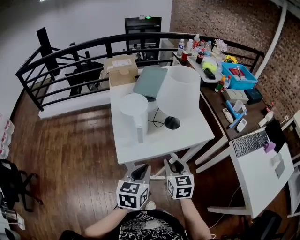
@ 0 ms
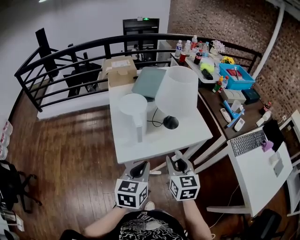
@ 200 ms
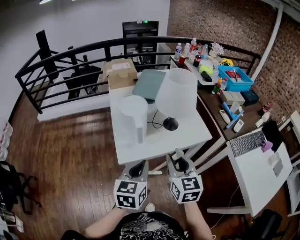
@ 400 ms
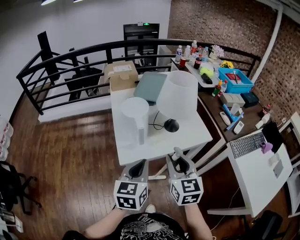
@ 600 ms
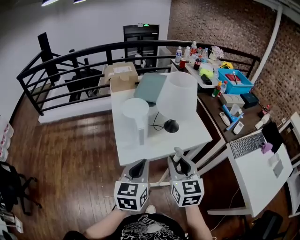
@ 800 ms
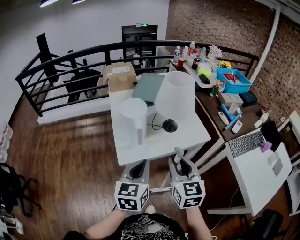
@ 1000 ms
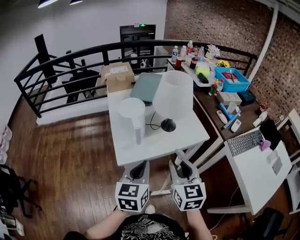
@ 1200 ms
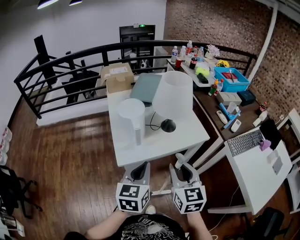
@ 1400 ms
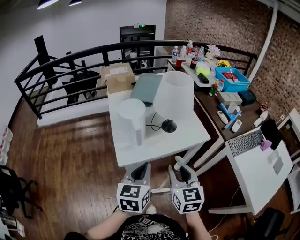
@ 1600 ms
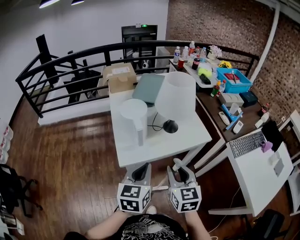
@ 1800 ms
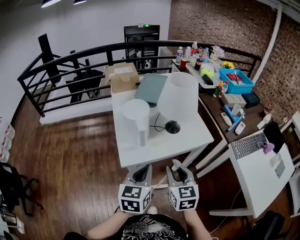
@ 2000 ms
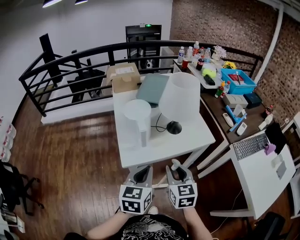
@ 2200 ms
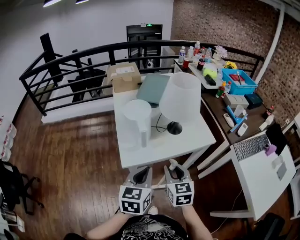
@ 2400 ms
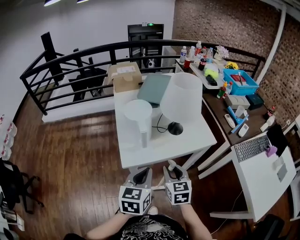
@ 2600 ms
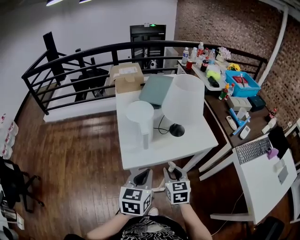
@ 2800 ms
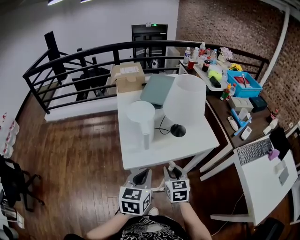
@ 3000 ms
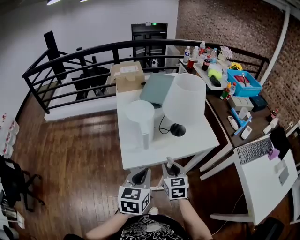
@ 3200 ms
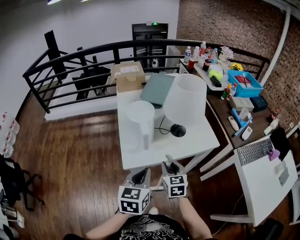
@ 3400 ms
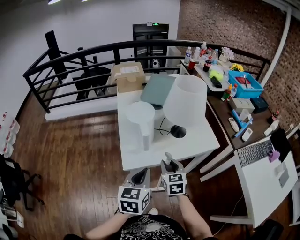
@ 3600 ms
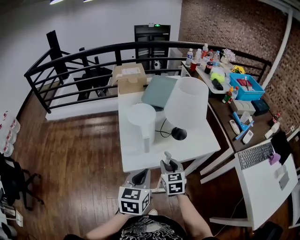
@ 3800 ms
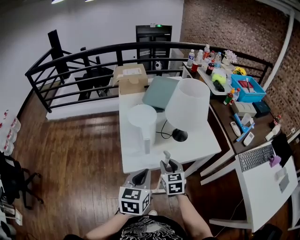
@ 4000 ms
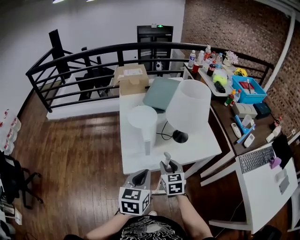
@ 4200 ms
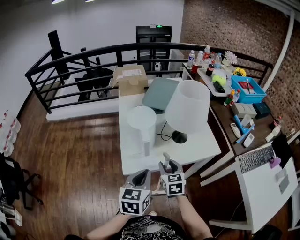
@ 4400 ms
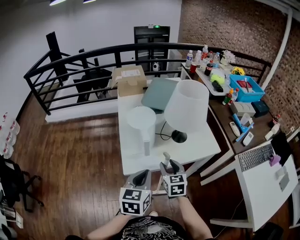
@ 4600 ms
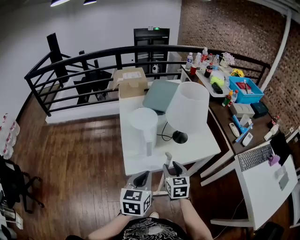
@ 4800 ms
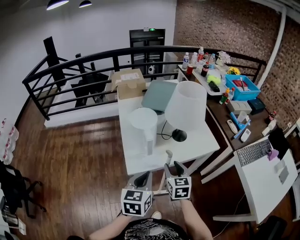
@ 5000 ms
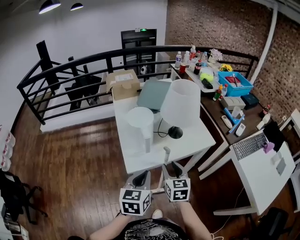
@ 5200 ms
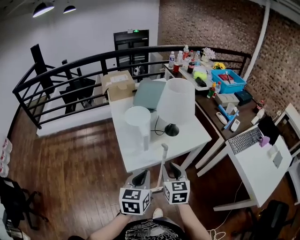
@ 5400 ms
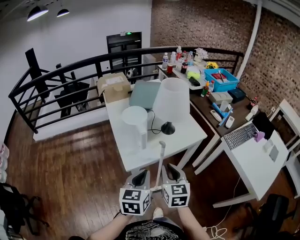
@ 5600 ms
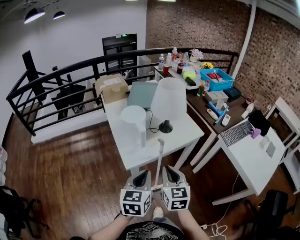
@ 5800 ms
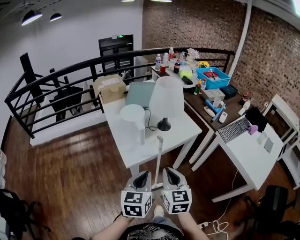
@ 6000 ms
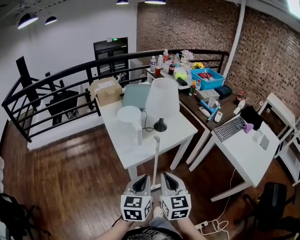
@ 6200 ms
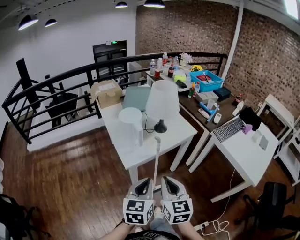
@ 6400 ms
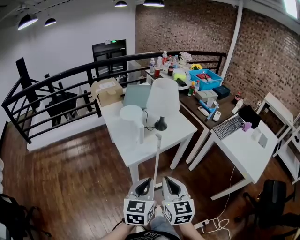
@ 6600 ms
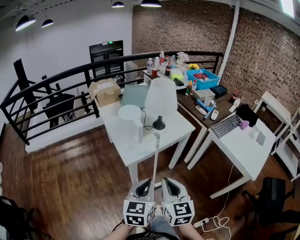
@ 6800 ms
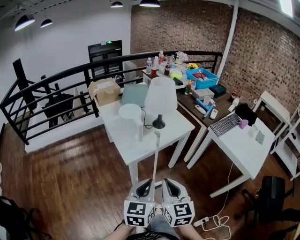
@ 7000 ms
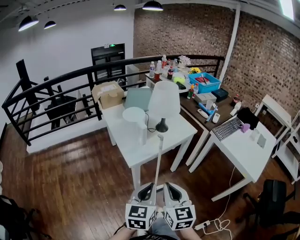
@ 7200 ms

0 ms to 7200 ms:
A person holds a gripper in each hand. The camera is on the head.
0 ms to 1400 ms: The right gripper moves upward and backward, some 10 cm; the left gripper goes about 5 cm upward.
1400 ms to 2800 ms: The right gripper heads downward, covering some 15 cm.
2800 ms to 4400 ms: The right gripper heads forward, covering about 10 cm.
4400 ms to 5800 ms: The left gripper travels backward and upward by roughly 10 cm; the right gripper goes about 20 cm backward and upward, turns by about 20 degrees, and closes up.
5800 ms to 7200 ms: The two grippers go some 15 cm backward.

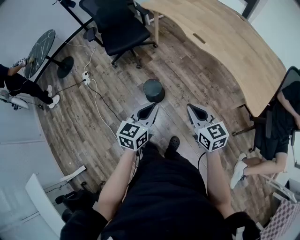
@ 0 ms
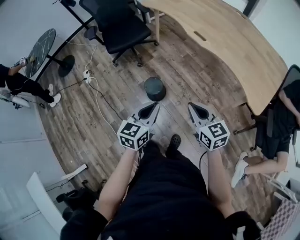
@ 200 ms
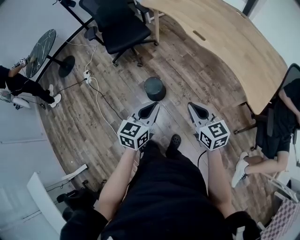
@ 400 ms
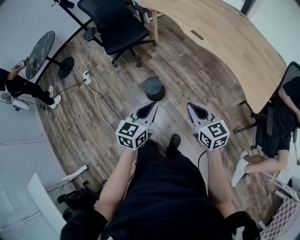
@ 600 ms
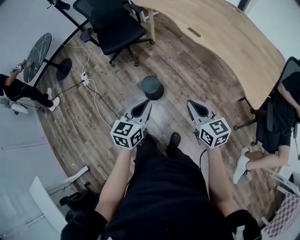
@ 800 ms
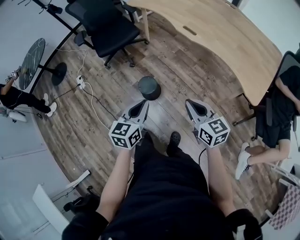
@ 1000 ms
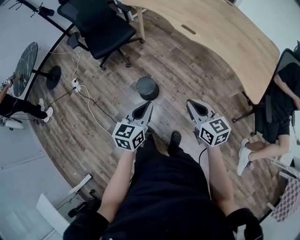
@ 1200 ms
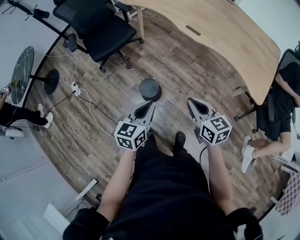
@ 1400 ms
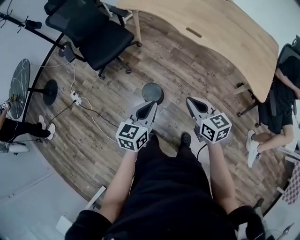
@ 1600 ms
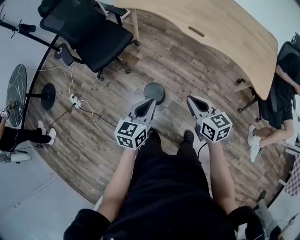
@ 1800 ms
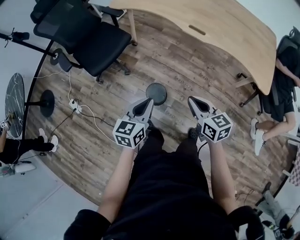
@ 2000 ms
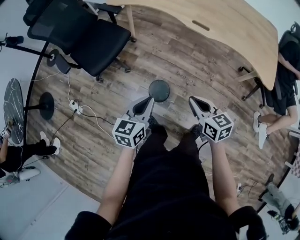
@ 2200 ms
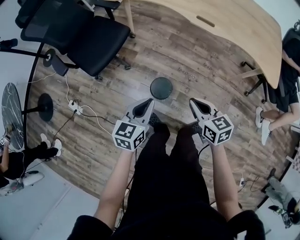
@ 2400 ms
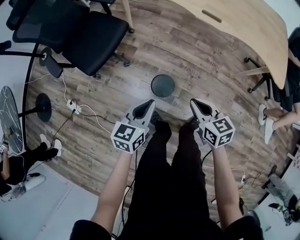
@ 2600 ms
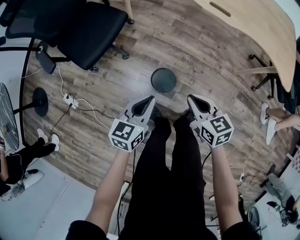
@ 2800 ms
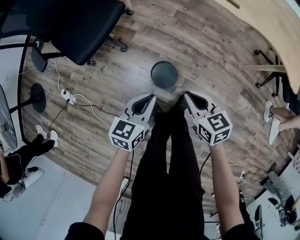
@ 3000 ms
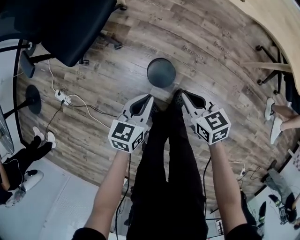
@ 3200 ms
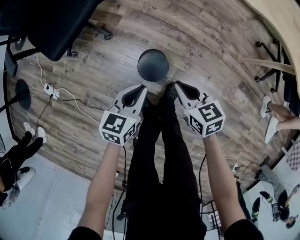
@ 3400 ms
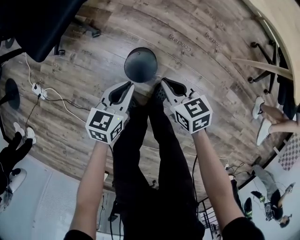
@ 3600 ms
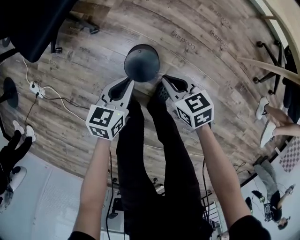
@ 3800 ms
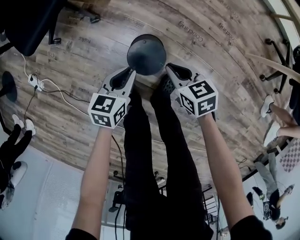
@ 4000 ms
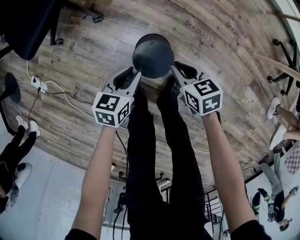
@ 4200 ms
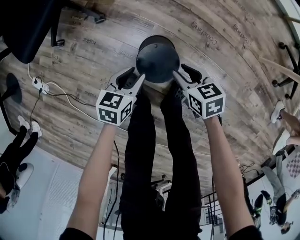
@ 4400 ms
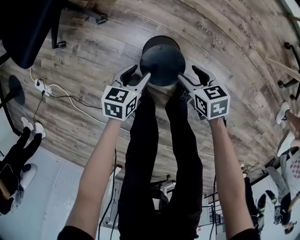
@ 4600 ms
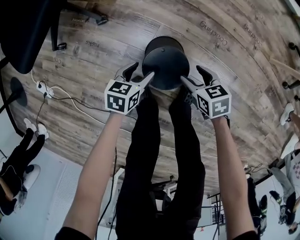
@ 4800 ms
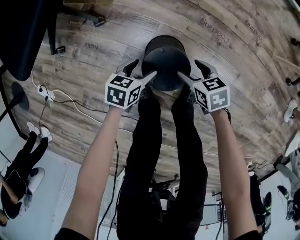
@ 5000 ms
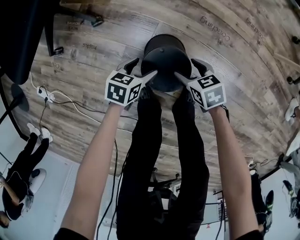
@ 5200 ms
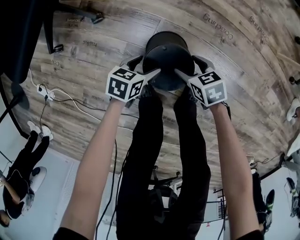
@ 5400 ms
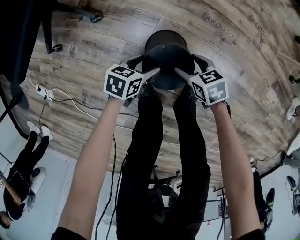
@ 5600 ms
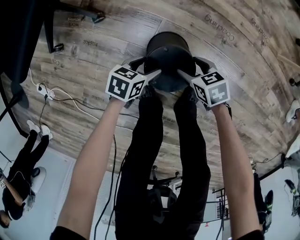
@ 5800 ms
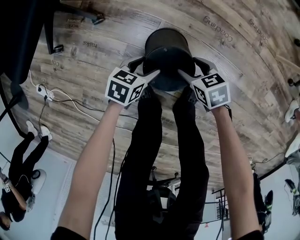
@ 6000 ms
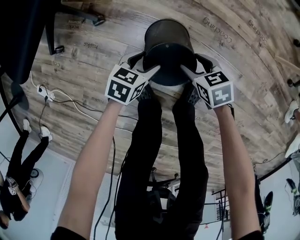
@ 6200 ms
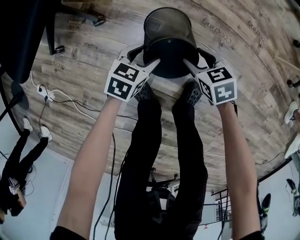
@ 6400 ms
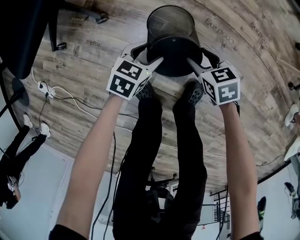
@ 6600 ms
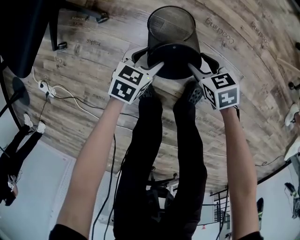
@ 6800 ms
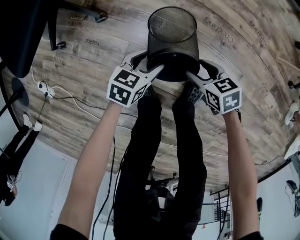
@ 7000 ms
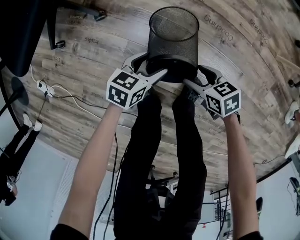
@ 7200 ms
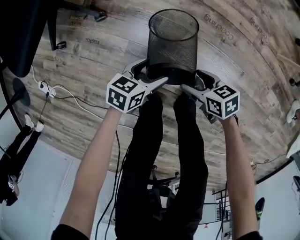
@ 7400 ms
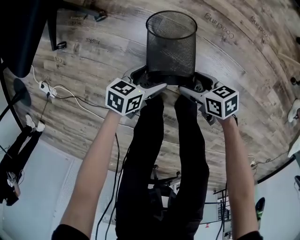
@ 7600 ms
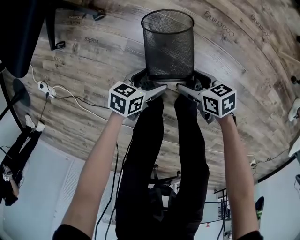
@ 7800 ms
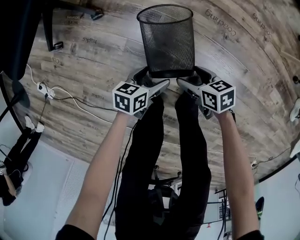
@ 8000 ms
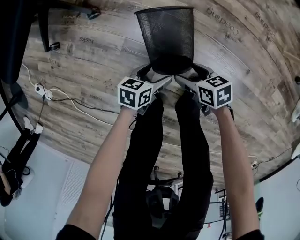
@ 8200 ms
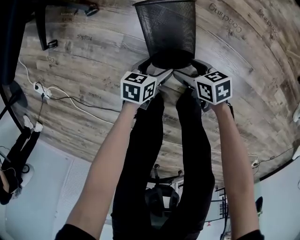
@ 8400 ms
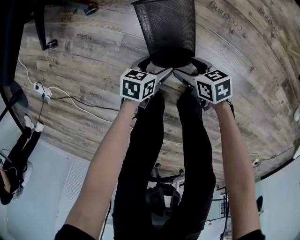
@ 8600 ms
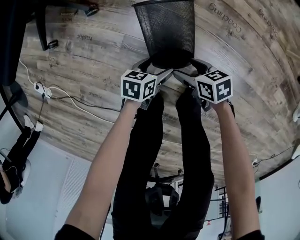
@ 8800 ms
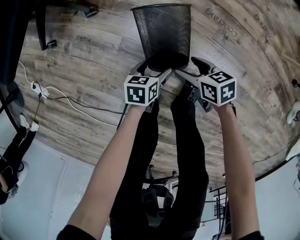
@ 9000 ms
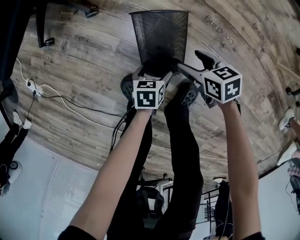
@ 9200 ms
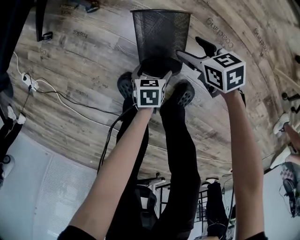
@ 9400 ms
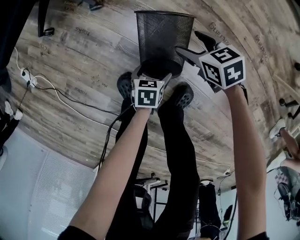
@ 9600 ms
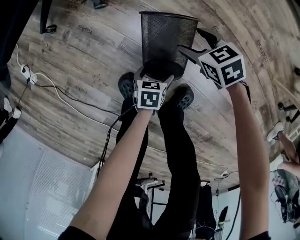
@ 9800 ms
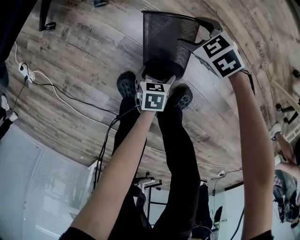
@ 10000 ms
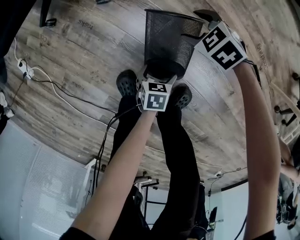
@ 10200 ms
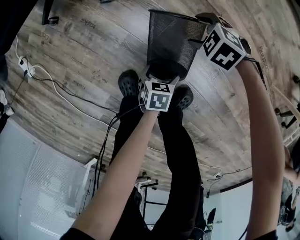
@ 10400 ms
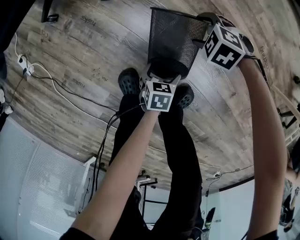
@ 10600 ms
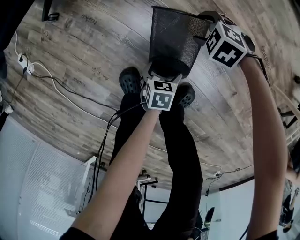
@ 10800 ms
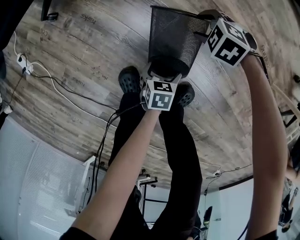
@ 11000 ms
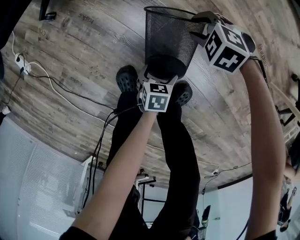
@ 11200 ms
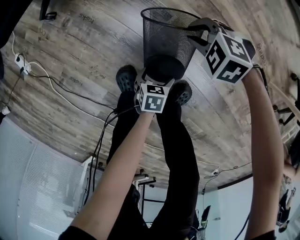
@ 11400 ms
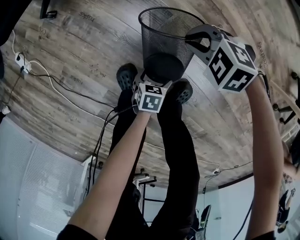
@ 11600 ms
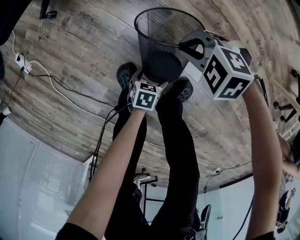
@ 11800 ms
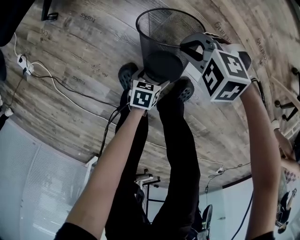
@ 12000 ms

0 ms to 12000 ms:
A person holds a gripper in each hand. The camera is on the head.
0 ms to 1600 ms: Both grippers move forward and to the left, roughly 15 cm.
1600 ms to 3000 ms: The left gripper is displaced downward, to the left and forward by approximately 25 cm. Meanwhile the right gripper goes approximately 25 cm downward and to the left.
3000 ms to 4400 ms: The two grippers go approximately 35 cm downward.
4400 ms to 6000 ms: The two grippers go about 10 cm downward. The left gripper turns by some 20 degrees, while the right gripper opens its fingers.
6000 ms to 7600 ms: The left gripper changes place by roughly 5 cm, while the right gripper shifts by some 10 cm, and swivels some 20 degrees.
7600 ms to 9000 ms: The right gripper shifts approximately 5 cm downward, while the left gripper is displaced downward by roughly 10 cm, and rotates about 20 degrees.
9000 ms to 10400 ms: The right gripper moves approximately 15 cm, and rotates around the line of its fingers by some 70 degrees, counterclockwise from behind.
10400 ms to 12000 ms: The right gripper shifts by about 15 cm, and closes up; the left gripper changes place by about 5 cm.

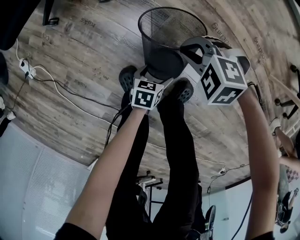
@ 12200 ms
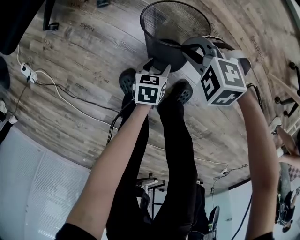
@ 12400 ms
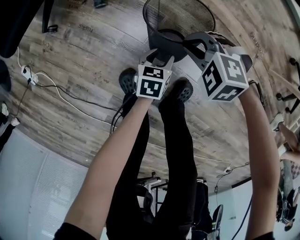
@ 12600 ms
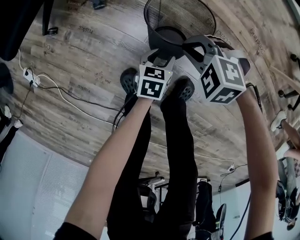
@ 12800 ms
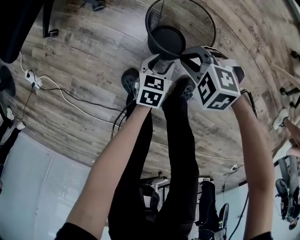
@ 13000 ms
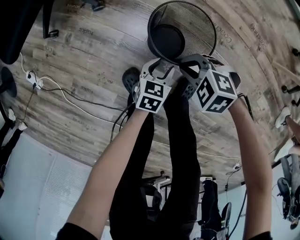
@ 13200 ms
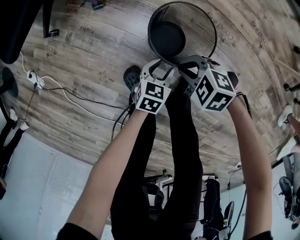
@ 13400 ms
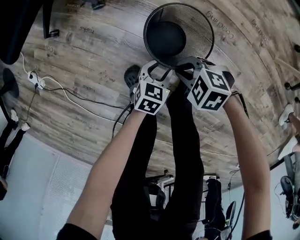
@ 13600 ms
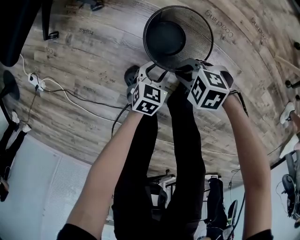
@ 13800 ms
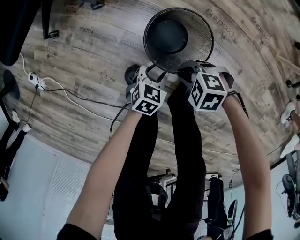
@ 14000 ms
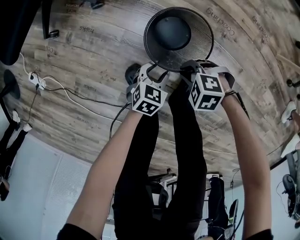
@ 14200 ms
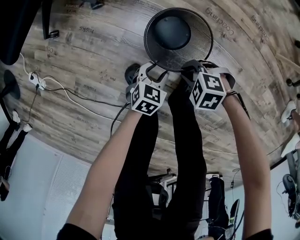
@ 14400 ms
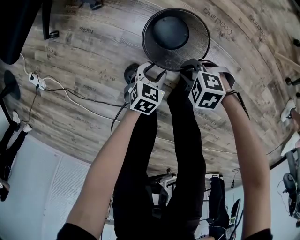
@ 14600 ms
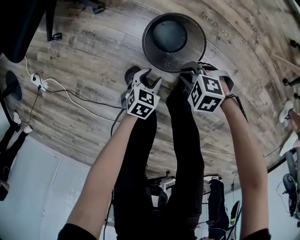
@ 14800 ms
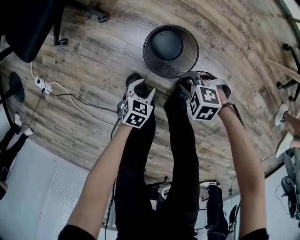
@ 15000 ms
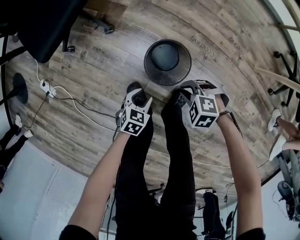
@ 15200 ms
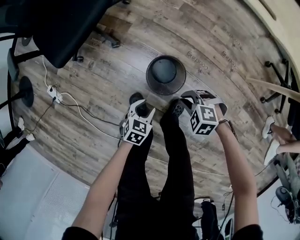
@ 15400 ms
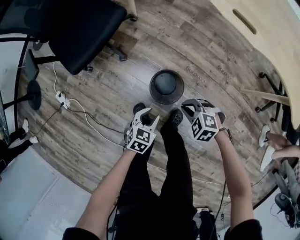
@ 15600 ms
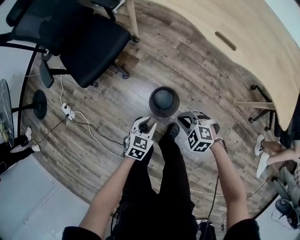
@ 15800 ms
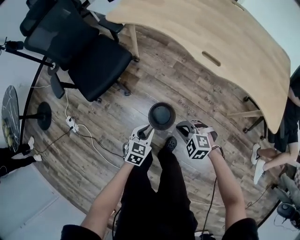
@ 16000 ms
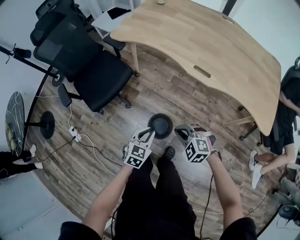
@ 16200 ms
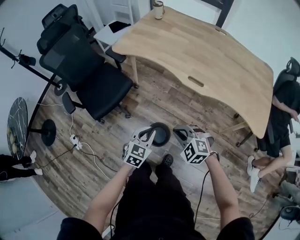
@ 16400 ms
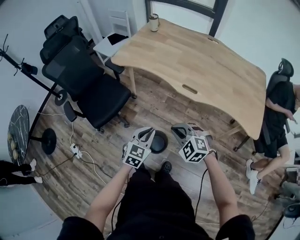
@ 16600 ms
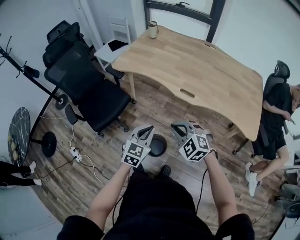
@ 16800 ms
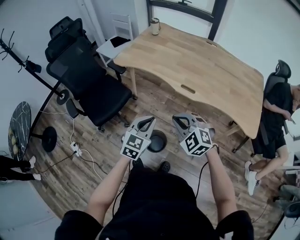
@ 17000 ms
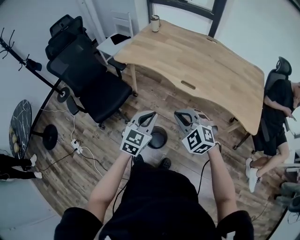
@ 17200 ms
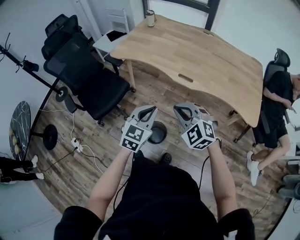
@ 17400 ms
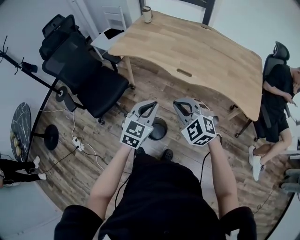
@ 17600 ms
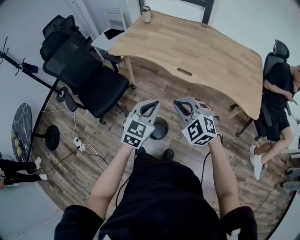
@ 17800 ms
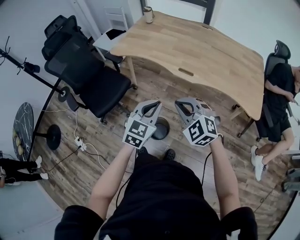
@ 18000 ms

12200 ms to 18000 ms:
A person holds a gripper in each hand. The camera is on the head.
12200 ms to 13600 ms: The left gripper moves upward, approximately 5 cm, rotates approximately 30 degrees, and closes up, while the right gripper changes place by roughly 10 cm, and rotates about 20 degrees.
13600 ms to 15000 ms: The right gripper changes place by roughly 5 cm; the left gripper ends up about 10 cm from where it was.
15000 ms to 16600 ms: The two grippers go about 60 cm upward. The left gripper angles its fingers upward, by roughly 30 degrees. The right gripper changes its angle by approximately 40 degrees.
16600 ms to 18000 ms: The right gripper shifts about 10 cm upward. Meanwhile the left gripper shifts some 10 cm upward and to the right.
